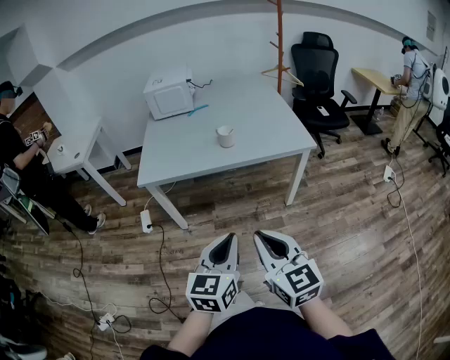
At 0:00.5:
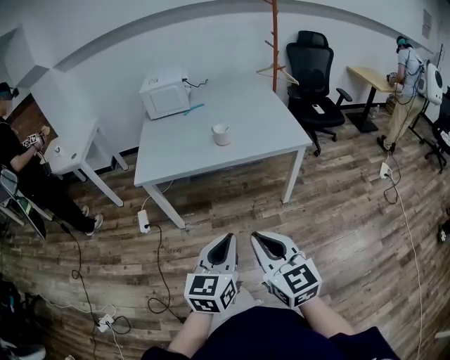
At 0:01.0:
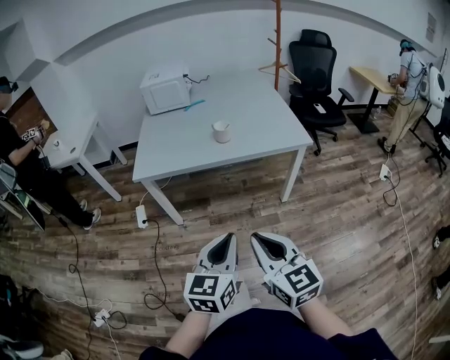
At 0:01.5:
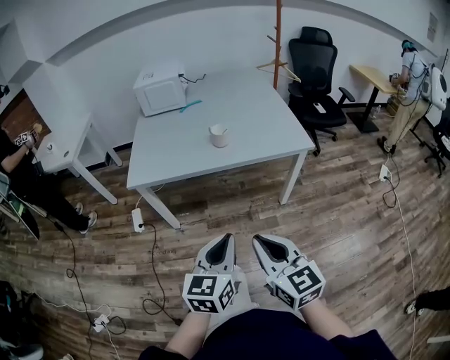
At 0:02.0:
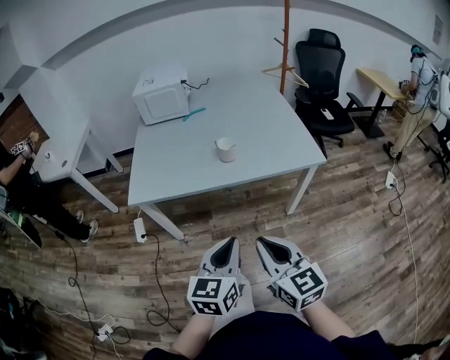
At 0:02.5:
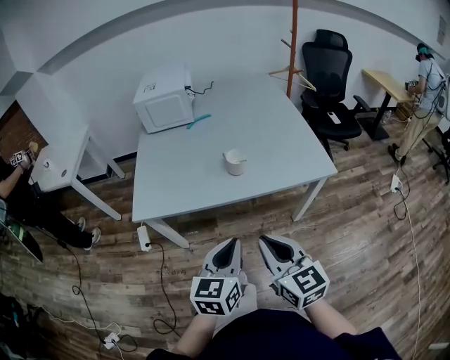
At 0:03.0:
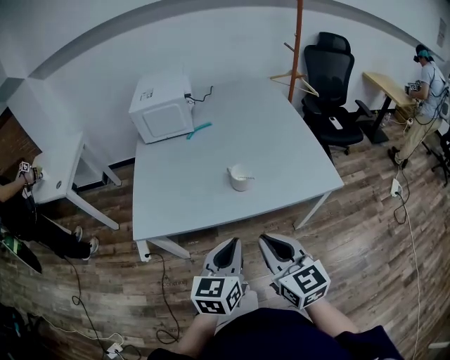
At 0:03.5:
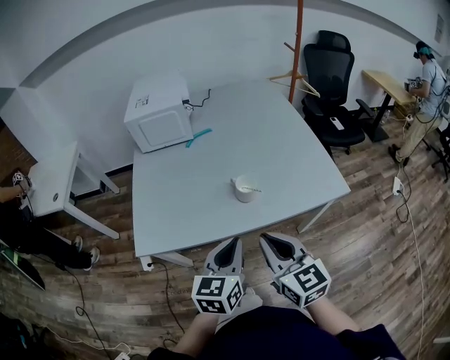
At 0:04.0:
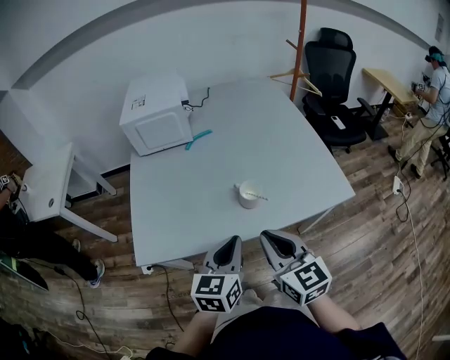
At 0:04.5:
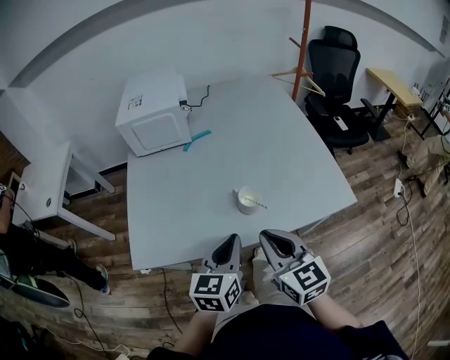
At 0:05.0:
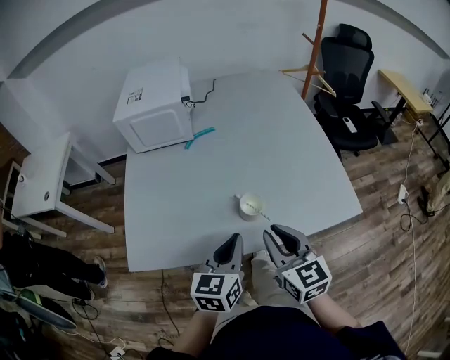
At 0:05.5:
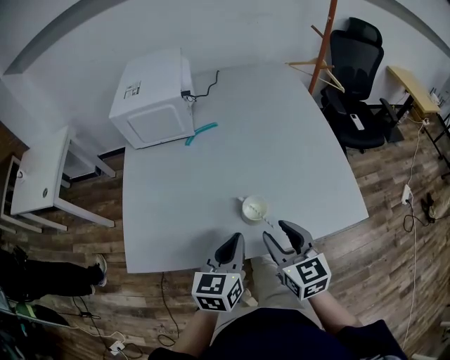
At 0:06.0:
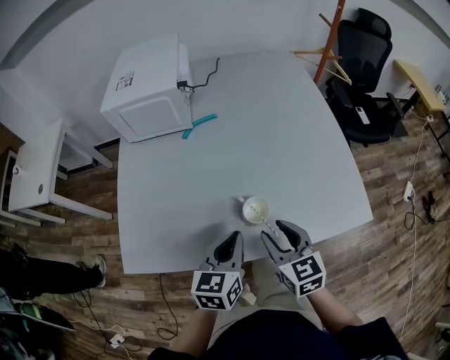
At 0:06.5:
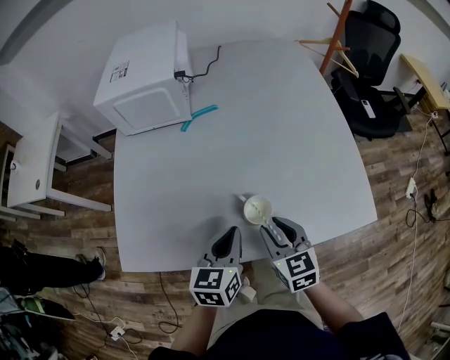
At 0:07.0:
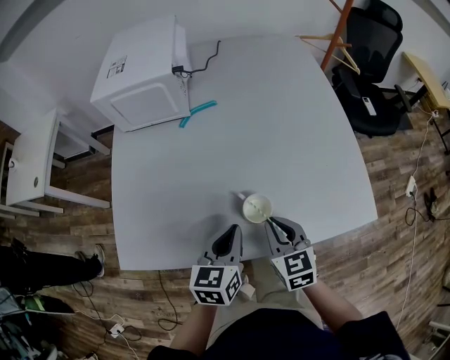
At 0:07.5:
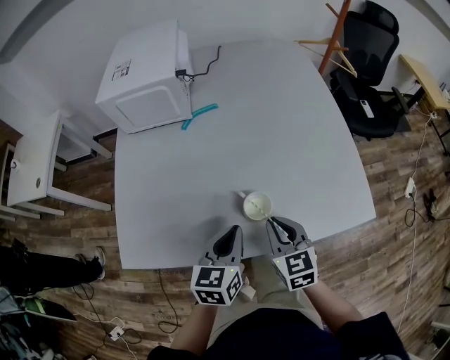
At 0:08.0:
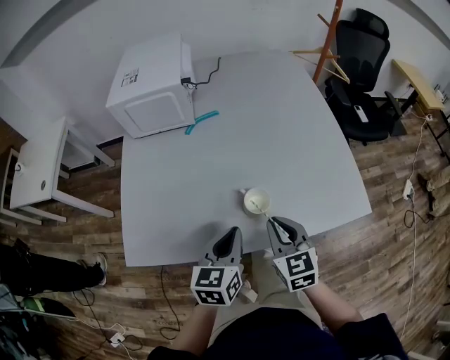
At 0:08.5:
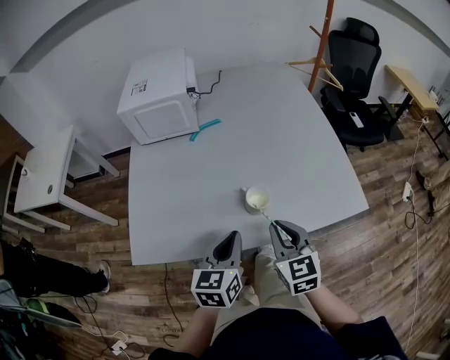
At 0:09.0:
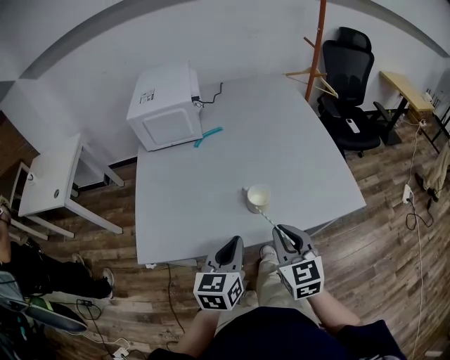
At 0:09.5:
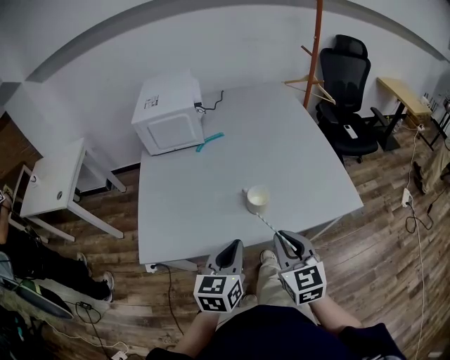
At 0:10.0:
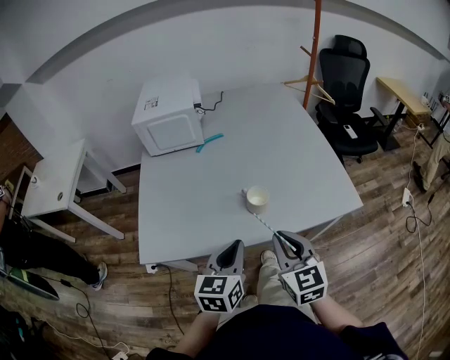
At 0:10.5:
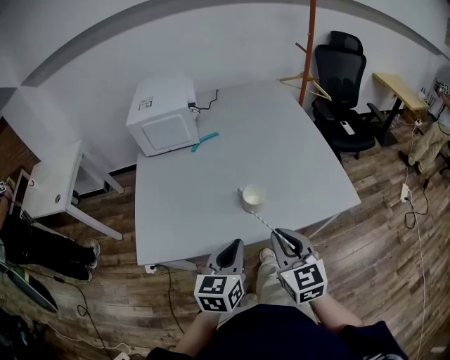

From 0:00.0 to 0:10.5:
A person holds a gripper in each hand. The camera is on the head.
From 0:00.0 to 0:02.0: Both grippers travel together forward, about 15 cm.
From 0:02.0 to 0:04.0: The grippers both shift forward by about 25 cm.
From 0:04.0 to 0:06.5: Both grippers move forward and downward, roughly 20 cm. The right gripper opens up.
From 0:06.5 to 0:08.5: The left gripper moves backward, roughly 5 cm, while the right gripper goes roughly 10 cm upward and backward, and closes up.
From 0:08.5 to 0:10.5: Both grippers travel together backward, some 5 cm.

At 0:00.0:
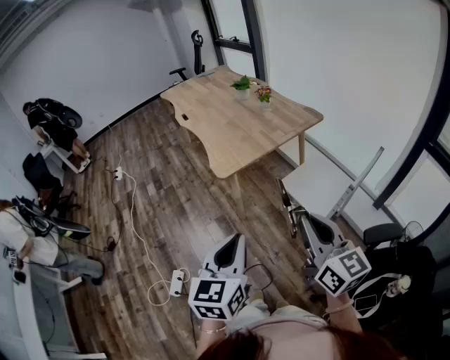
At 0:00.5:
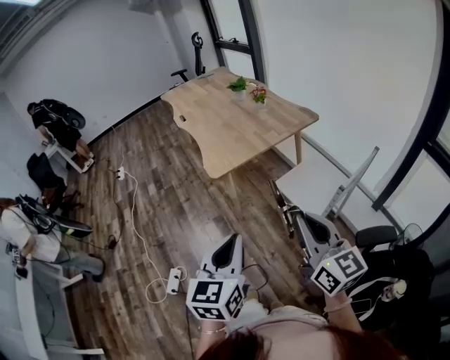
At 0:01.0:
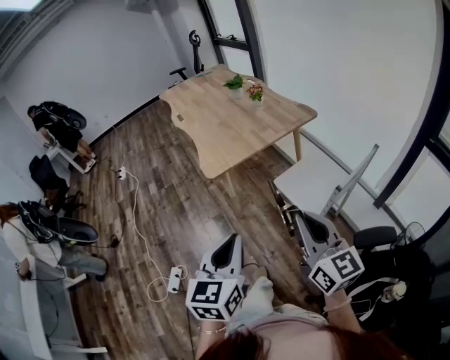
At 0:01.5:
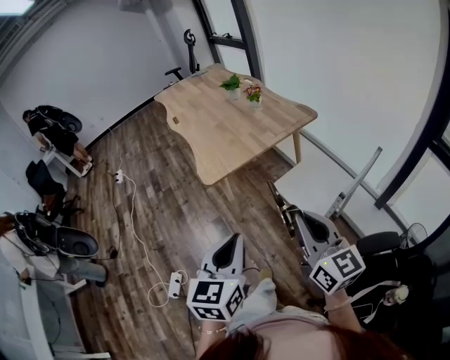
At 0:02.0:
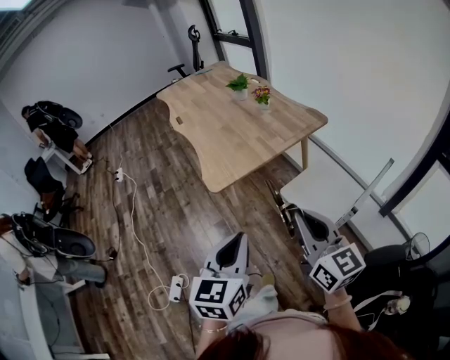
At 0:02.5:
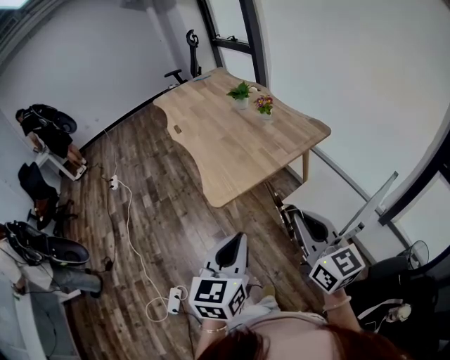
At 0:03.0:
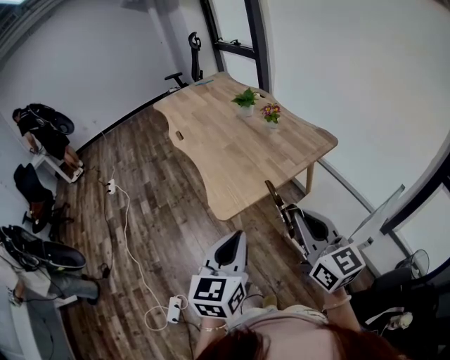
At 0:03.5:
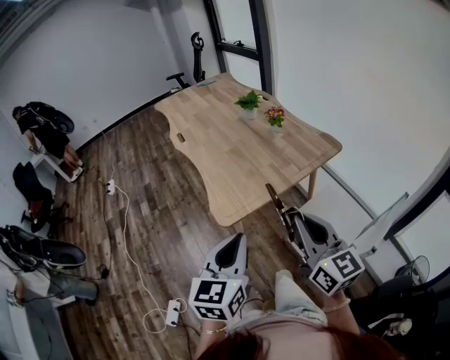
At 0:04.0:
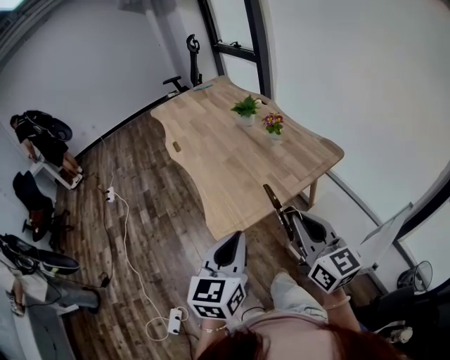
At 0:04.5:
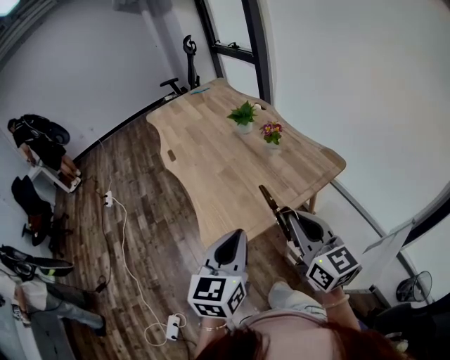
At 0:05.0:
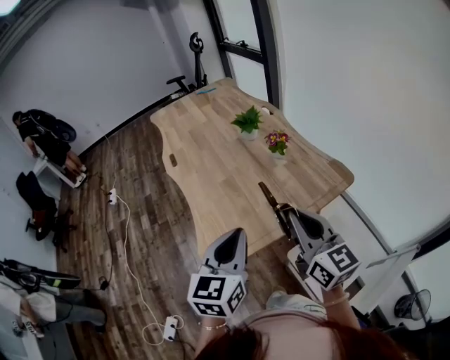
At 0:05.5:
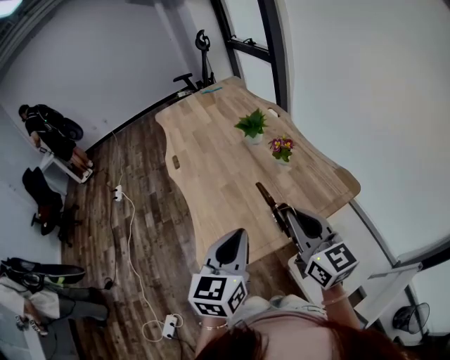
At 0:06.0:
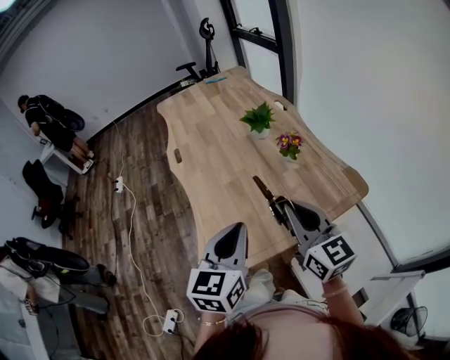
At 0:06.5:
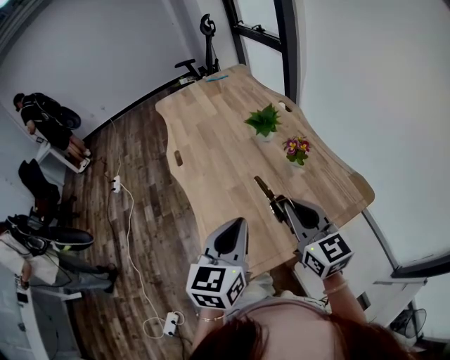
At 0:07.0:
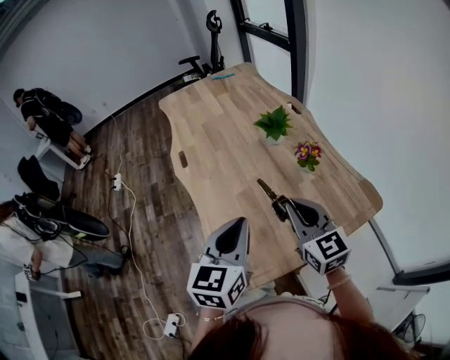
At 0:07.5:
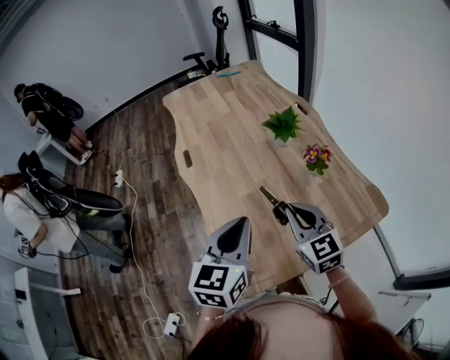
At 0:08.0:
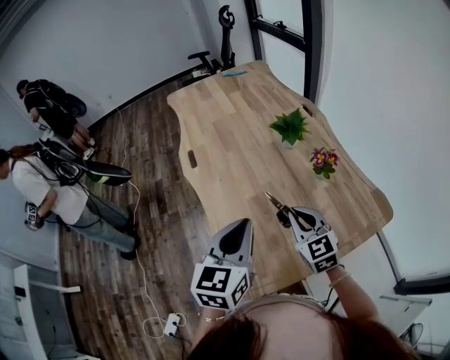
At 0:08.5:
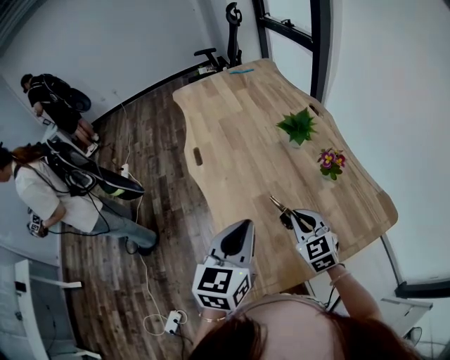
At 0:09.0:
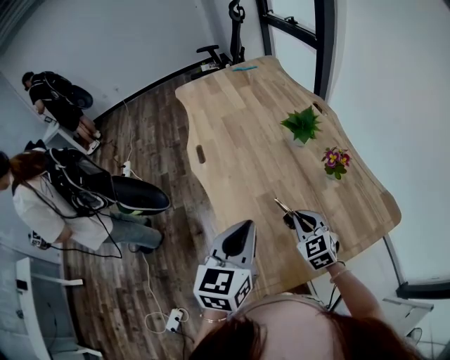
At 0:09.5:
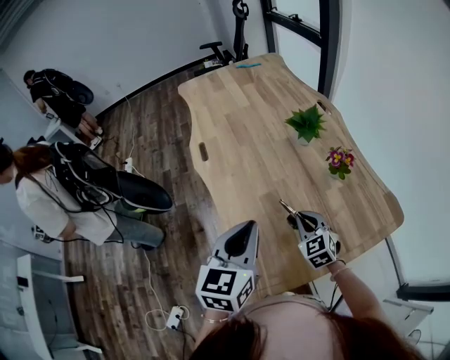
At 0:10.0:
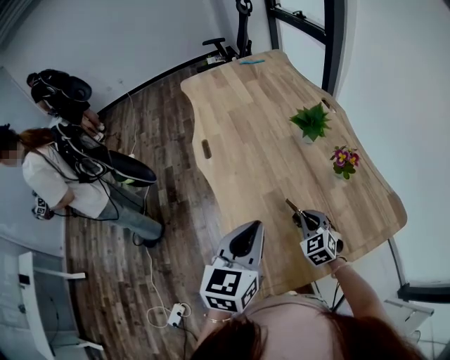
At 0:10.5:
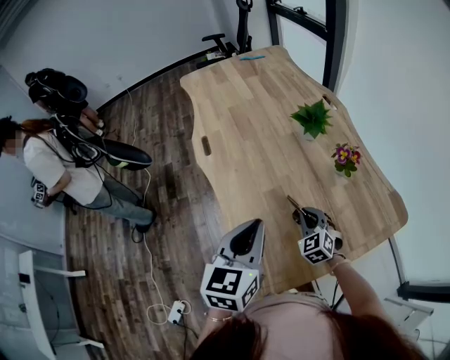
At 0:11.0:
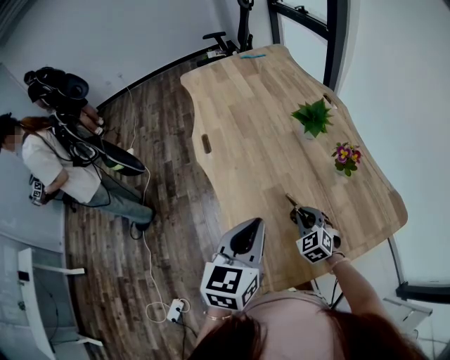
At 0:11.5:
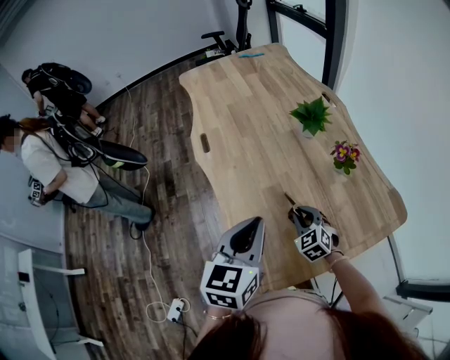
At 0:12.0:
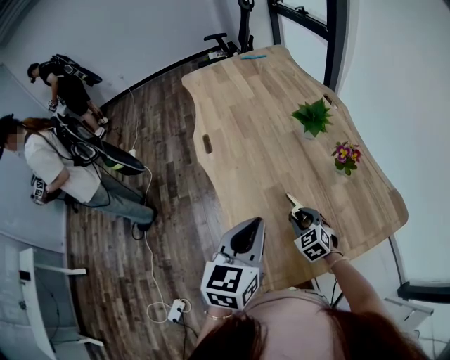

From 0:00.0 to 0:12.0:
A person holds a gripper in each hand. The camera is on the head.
From 0:00.0 to 0:02.0: The right gripper heads forward, covering roughly 10 cm; the left gripper goes roughly 15 cm forward and to the right.
From 0:02.0 to 0:04.0: The grippers both shift forward by some 20 cm.
From 0:04.0 to 0:06.0: The two grippers go some 25 cm forward.
From 0:06.0 to 0:08.0: The right gripper is displaced forward, downward and to the left by some 20 cm, and changes its angle by some 30 degrees. The left gripper travels forward and to the left by approximately 15 cm.
From 0:08.0 to 0:10.0: The right gripper goes about 15 cm downward.
From 0:10.0 to 0:12.0: The right gripper opens up.

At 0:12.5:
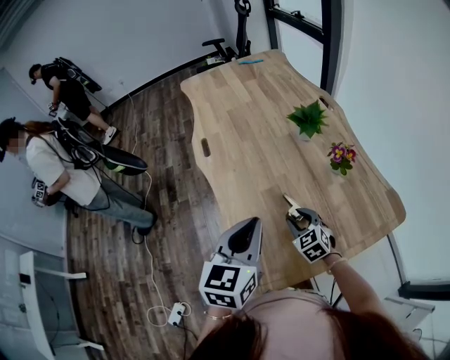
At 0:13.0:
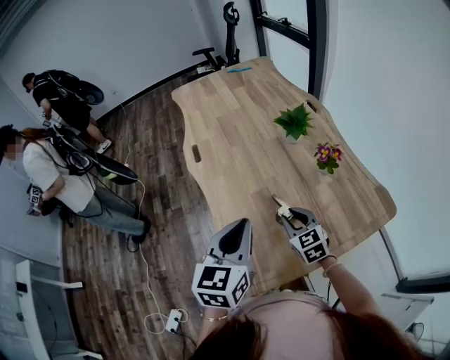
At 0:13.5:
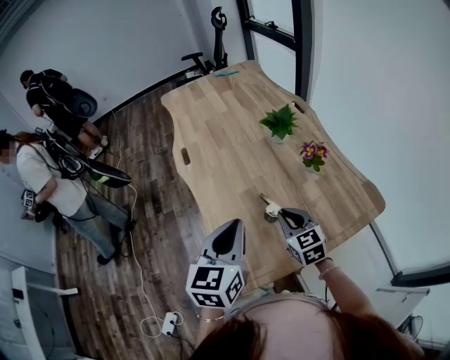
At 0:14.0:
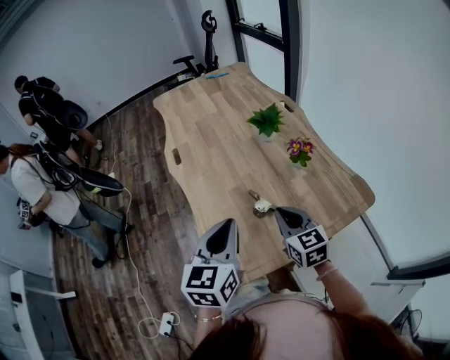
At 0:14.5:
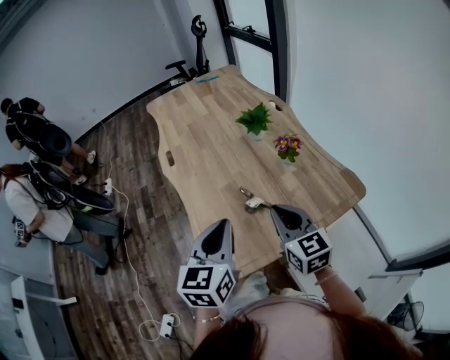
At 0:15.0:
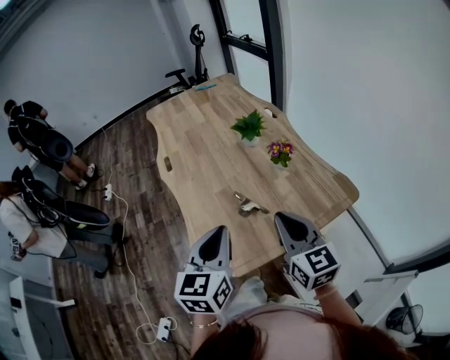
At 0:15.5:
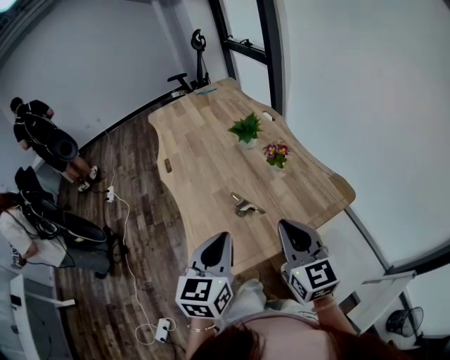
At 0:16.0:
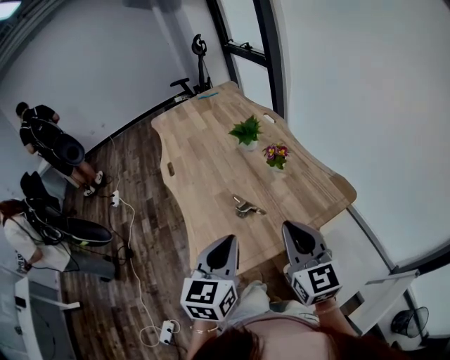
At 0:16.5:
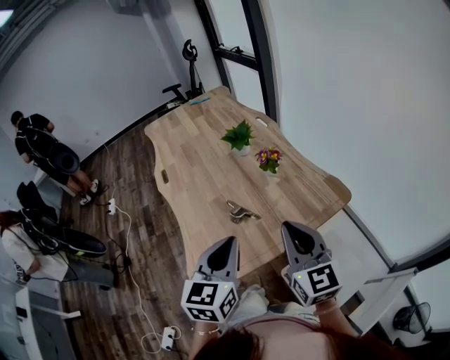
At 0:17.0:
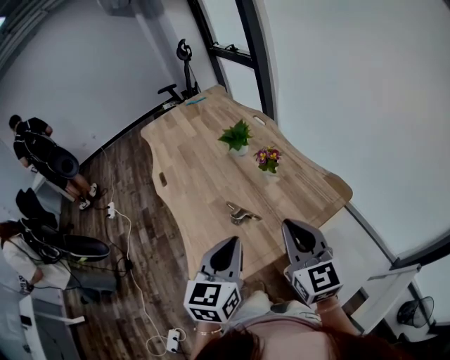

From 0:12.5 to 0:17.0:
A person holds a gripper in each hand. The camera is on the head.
From 0:12.5 to 0:14.5: The left gripper moves backward, some 10 cm; the right gripper shifts roughly 25 cm upward and backward, swivels roughly 30 degrees, and closes its fingers.
From 0:14.5 to 0:17.0: The right gripper heads to the right, upward and backward, covering roughly 15 cm. Meanwhile the left gripper heads to the right, covering roughly 10 cm.
